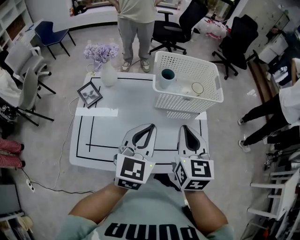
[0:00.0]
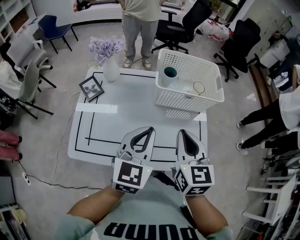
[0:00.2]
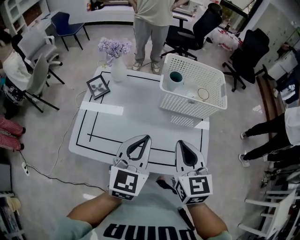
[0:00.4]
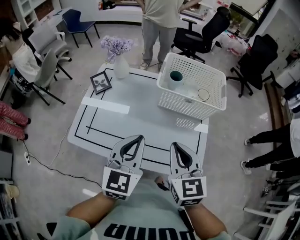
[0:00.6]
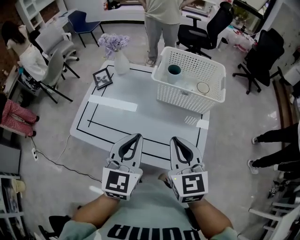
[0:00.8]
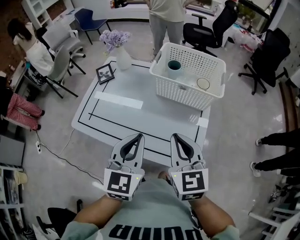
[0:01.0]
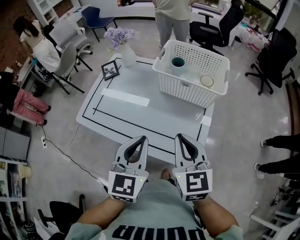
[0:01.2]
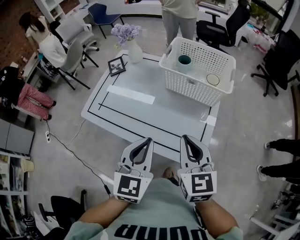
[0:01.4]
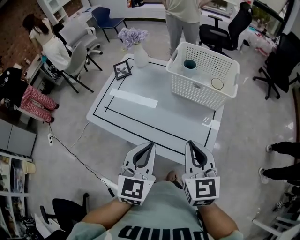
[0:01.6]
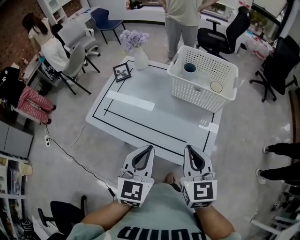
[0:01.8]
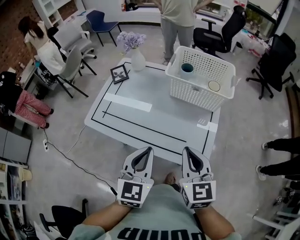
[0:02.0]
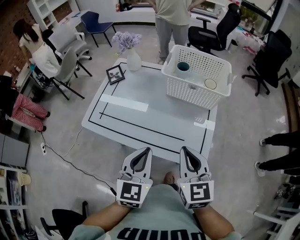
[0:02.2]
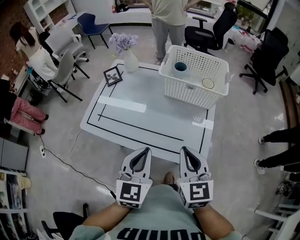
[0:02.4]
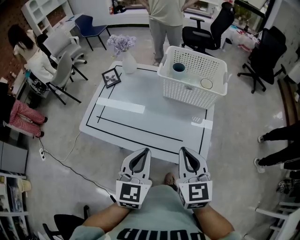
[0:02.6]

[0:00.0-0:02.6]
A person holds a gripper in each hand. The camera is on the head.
0:00.0 to 0:01.2: The right gripper ends up approximately 15 cm from where it was, and turns by roughly 30 degrees. The left gripper shifts by approximately 15 cm, and swivels about 30 degrees.
0:01.2 to 0:02.6: The left gripper ends up approximately 5 cm from where it was. The right gripper ends up roughly 5 cm from where it was.

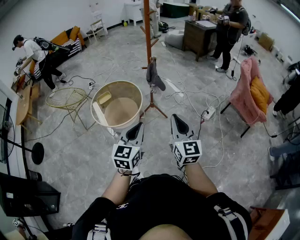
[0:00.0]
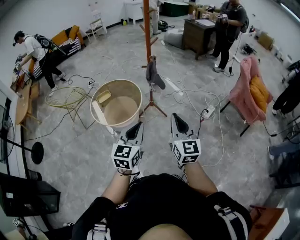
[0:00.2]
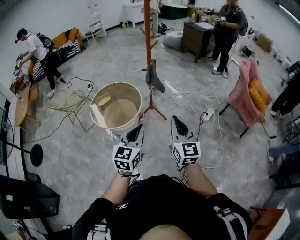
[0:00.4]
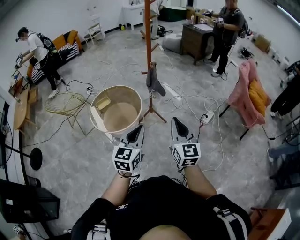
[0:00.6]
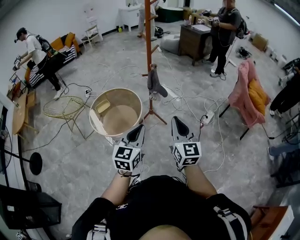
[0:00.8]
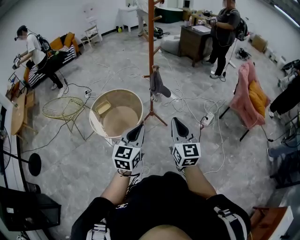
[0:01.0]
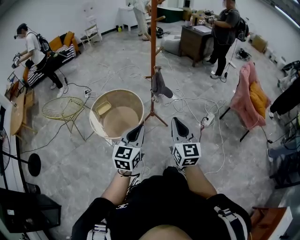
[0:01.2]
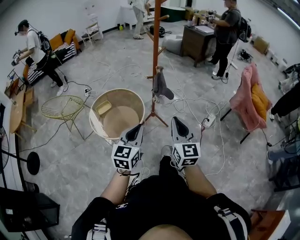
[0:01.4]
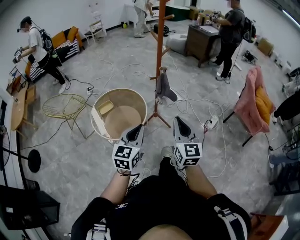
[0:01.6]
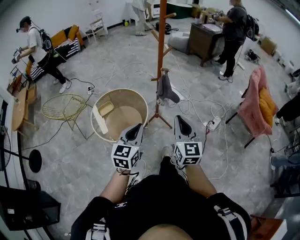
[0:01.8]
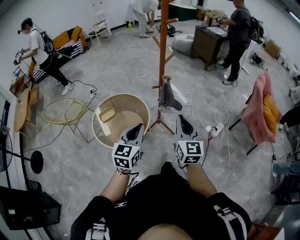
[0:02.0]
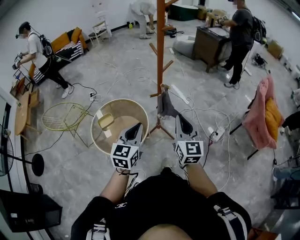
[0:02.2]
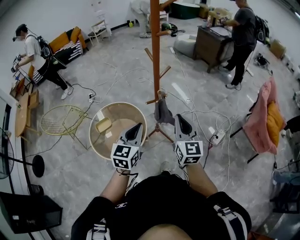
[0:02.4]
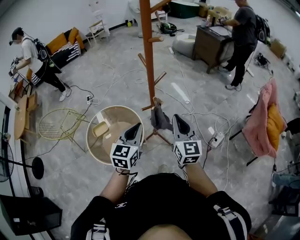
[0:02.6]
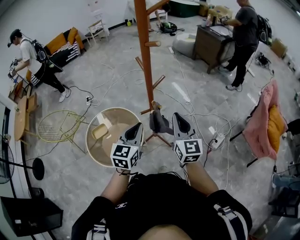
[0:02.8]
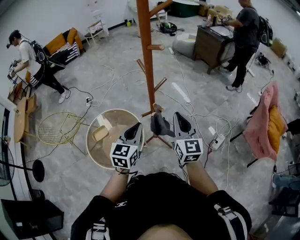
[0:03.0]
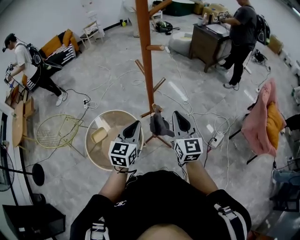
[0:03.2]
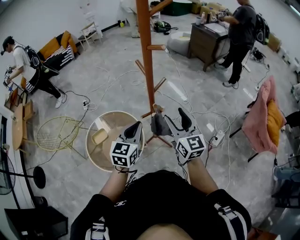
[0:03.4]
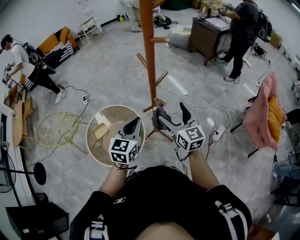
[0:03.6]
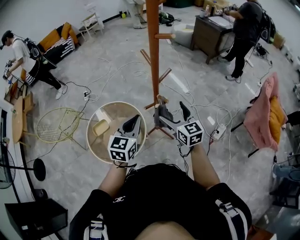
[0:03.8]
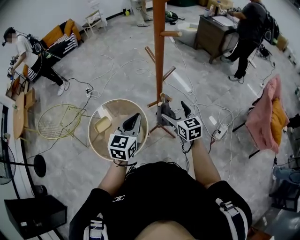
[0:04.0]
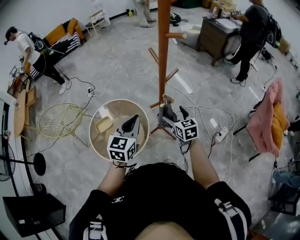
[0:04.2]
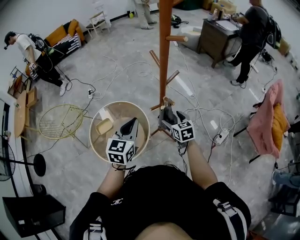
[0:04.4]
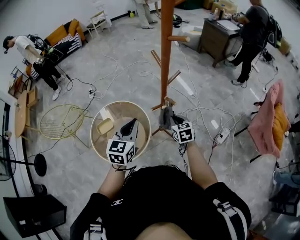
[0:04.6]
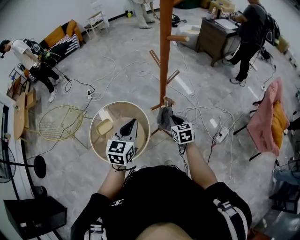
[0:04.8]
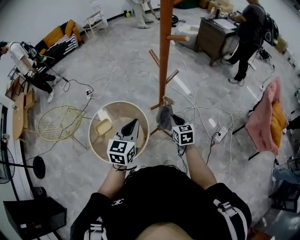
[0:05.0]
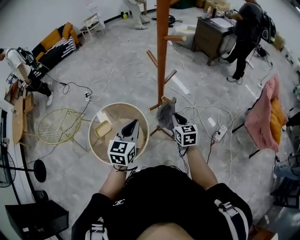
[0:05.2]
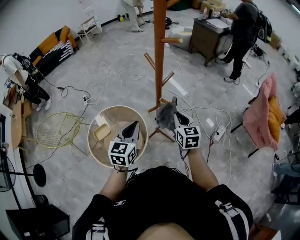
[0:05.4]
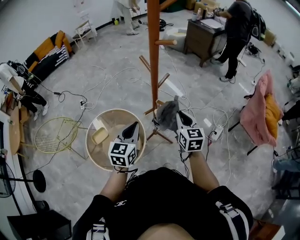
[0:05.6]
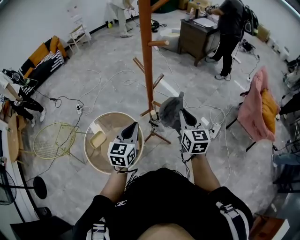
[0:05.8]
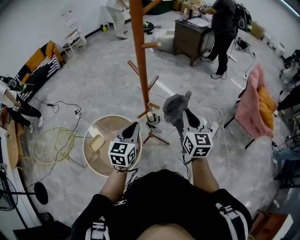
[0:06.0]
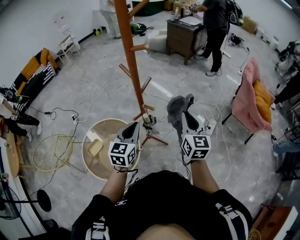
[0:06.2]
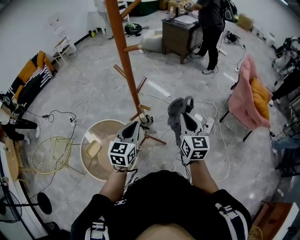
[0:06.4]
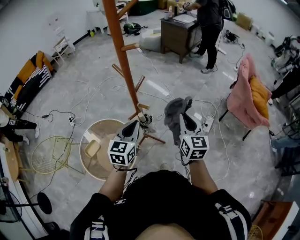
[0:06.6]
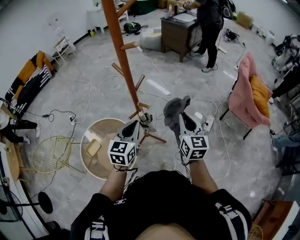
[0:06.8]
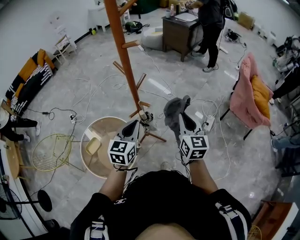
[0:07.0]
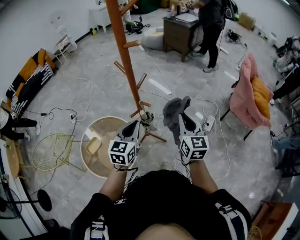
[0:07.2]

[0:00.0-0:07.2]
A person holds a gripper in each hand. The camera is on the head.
0:00.0 to 0:01.4: The right gripper heads to the left and forward, covering some 15 cm; the left gripper goes roughly 20 cm forward and to the left.
0:01.4 to 0:02.8: The pair of grippers is taken forward, approximately 50 cm.
0:02.8 to 0:04.4: The right gripper shifts some 25 cm downward, forward and to the left, angles its fingers downward, by about 30 degrees, and opens up, while the left gripper is displaced to the left and forward by approximately 10 cm.
0:04.4 to 0:05.8: The right gripper heads upward and to the right, covering about 20 cm, turns by about 30 degrees, and closes.
0:05.8 to 0:07.2: Both grippers move to the right, approximately 5 cm.

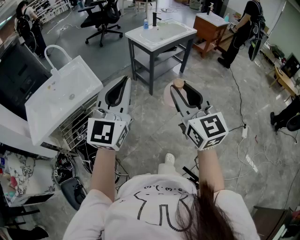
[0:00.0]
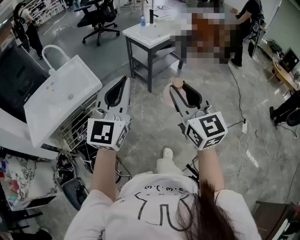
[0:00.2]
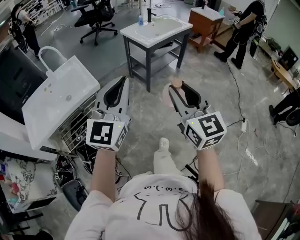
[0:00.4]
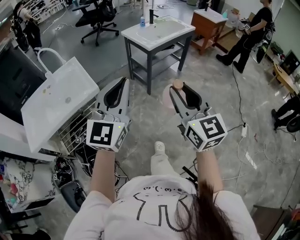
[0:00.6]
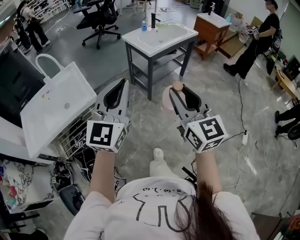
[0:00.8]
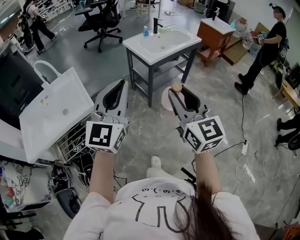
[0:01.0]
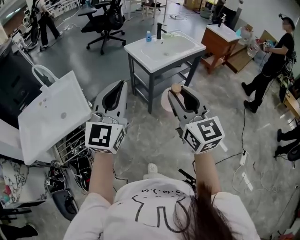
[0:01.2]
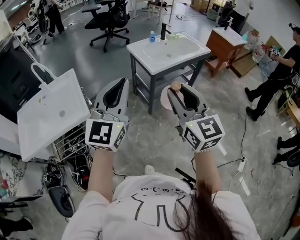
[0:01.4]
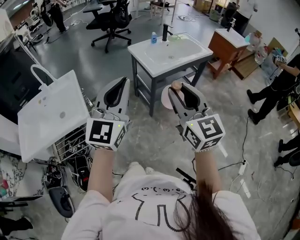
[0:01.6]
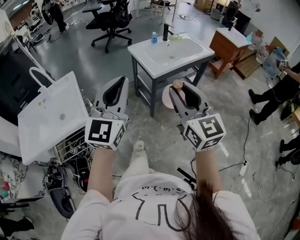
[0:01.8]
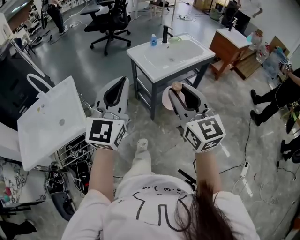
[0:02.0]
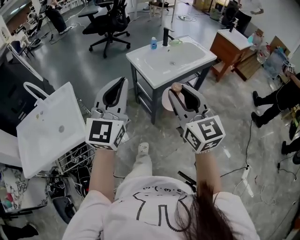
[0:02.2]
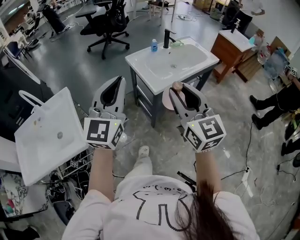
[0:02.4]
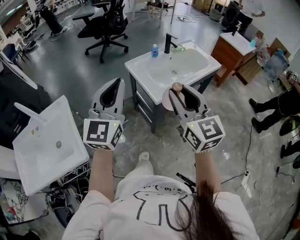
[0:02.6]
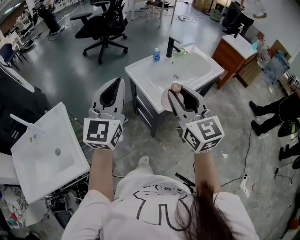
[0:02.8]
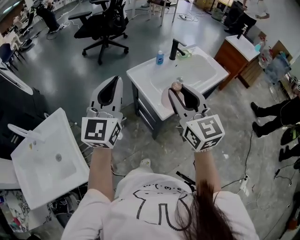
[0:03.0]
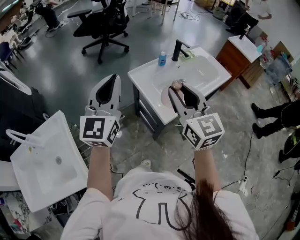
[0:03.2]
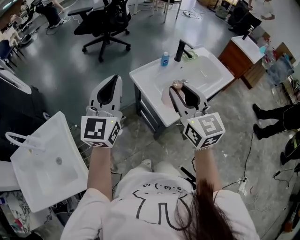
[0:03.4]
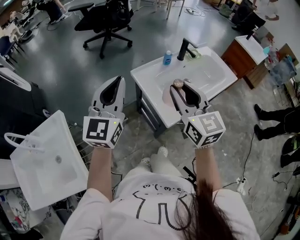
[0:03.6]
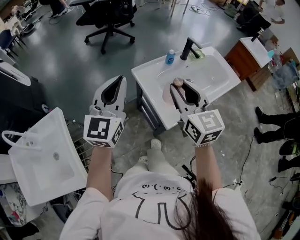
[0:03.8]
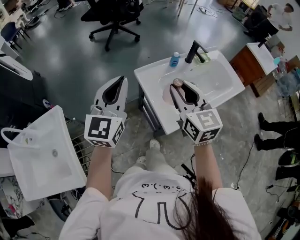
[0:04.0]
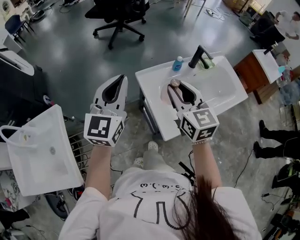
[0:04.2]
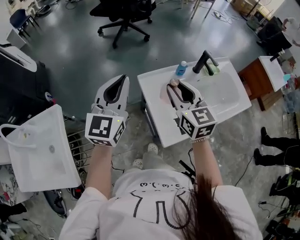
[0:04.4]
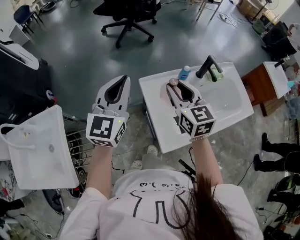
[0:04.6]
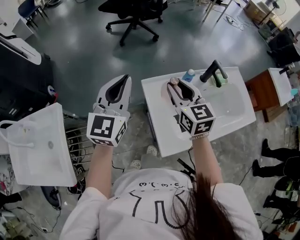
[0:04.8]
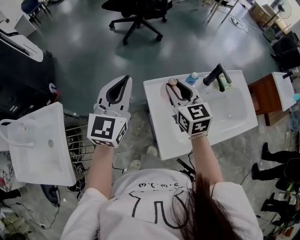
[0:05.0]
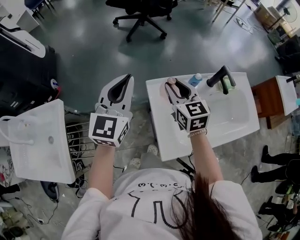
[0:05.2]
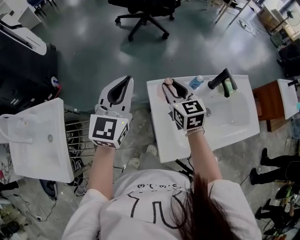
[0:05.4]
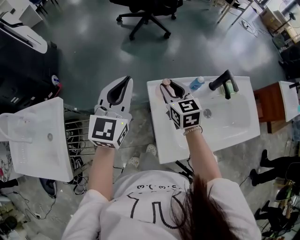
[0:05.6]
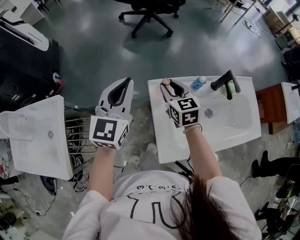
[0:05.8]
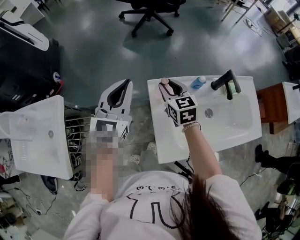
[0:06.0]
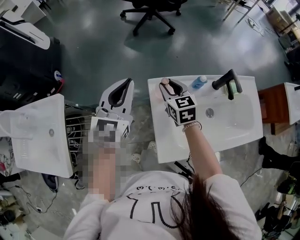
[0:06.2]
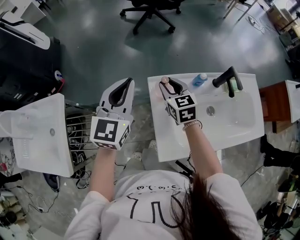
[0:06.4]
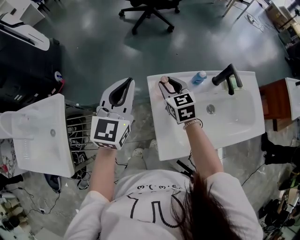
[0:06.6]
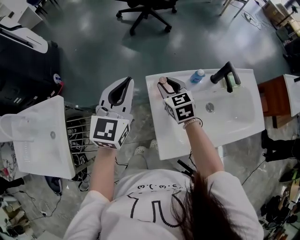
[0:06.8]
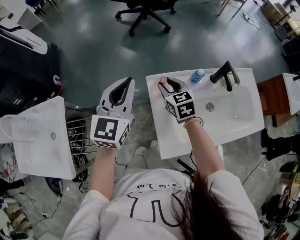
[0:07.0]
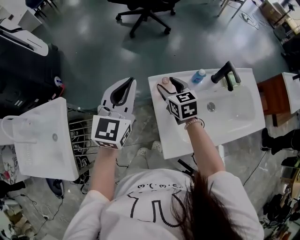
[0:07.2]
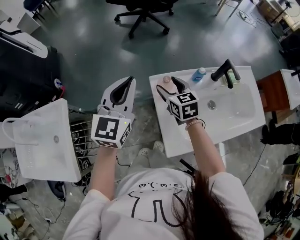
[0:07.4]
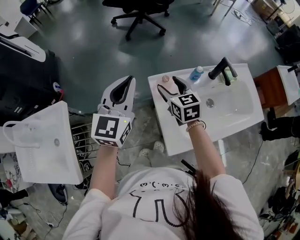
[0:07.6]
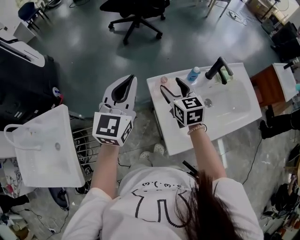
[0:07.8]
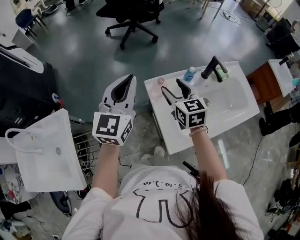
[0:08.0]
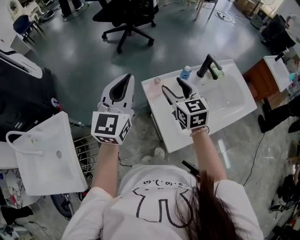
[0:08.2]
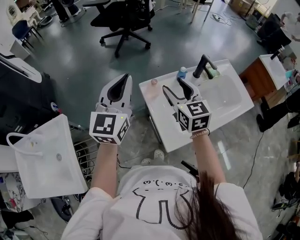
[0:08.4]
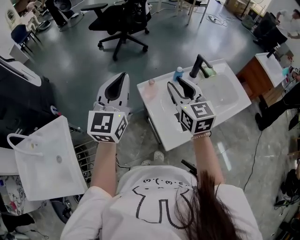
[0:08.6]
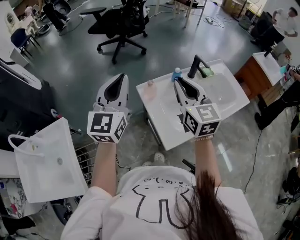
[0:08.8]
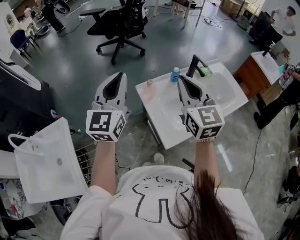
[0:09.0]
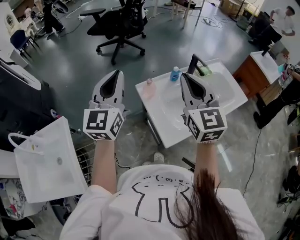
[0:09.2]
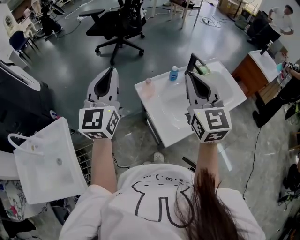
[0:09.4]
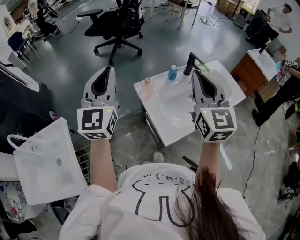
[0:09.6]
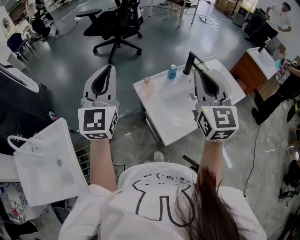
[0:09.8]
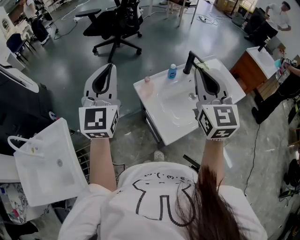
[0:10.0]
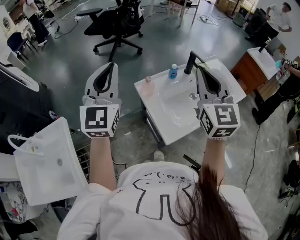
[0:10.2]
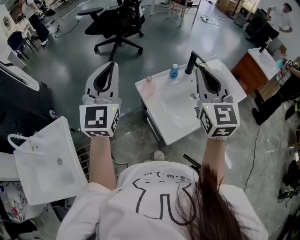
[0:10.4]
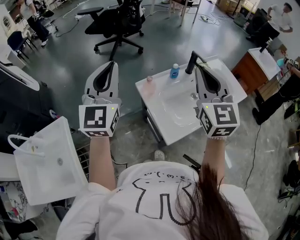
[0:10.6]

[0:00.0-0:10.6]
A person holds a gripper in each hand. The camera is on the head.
0:00.0 to 0:01.6: The two grippers go about 30 cm forward.
0:01.6 to 0:03.0: Both grippers move forward, approximately 40 cm.
0:03.0 to 0:04.6: The right gripper is displaced forward and downward by approximately 30 cm, and rotates some 20 degrees; the left gripper shifts approximately 20 cm forward.
0:04.6 to 0:06.0: The right gripper heads downward and forward, covering some 15 cm; the left gripper heads downward and forward, covering some 5 cm.
0:06.0 to 0:07.6: The right gripper opens up.
0:07.6 to 0:09.0: The left gripper travels upward and backward by roughly 10 cm. The right gripper goes about 25 cm upward and backward, turns by roughly 30 degrees, and closes its fingers.
0:09.0 to 0:10.6: The right gripper shifts roughly 5 cm upward.

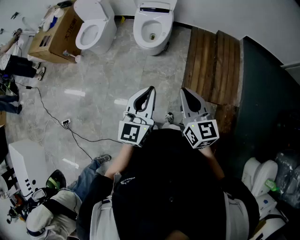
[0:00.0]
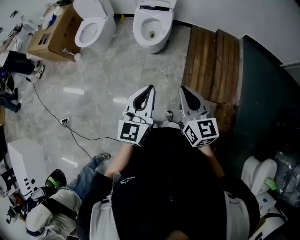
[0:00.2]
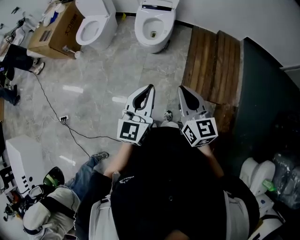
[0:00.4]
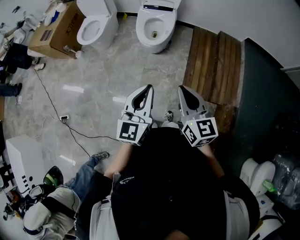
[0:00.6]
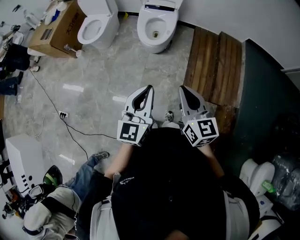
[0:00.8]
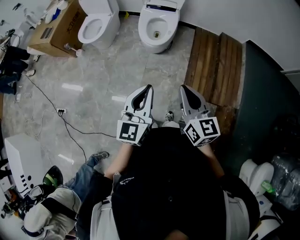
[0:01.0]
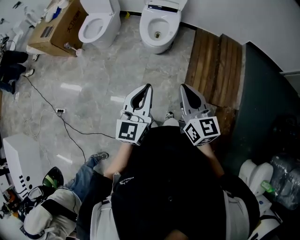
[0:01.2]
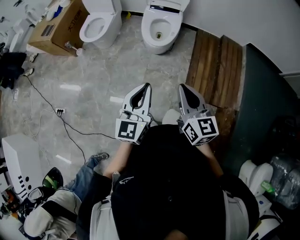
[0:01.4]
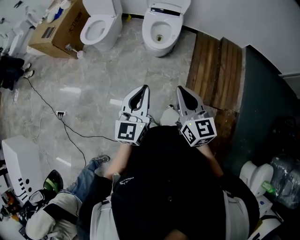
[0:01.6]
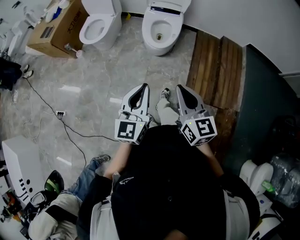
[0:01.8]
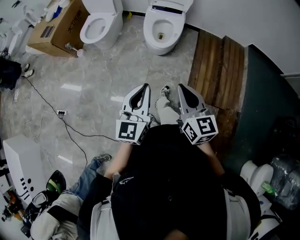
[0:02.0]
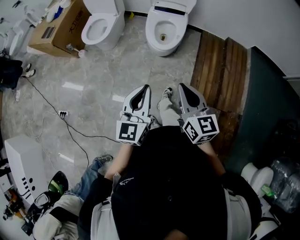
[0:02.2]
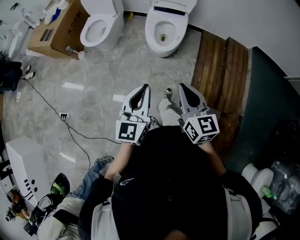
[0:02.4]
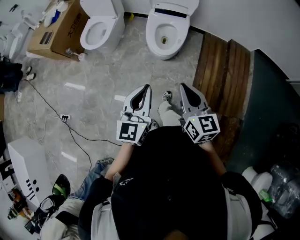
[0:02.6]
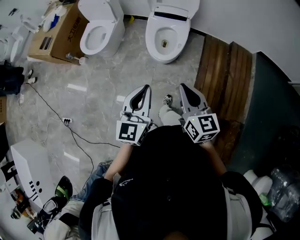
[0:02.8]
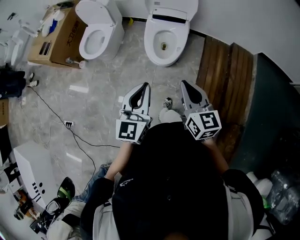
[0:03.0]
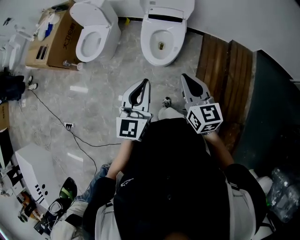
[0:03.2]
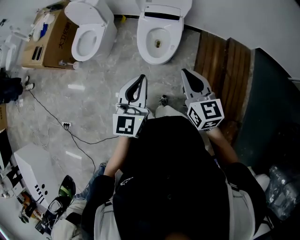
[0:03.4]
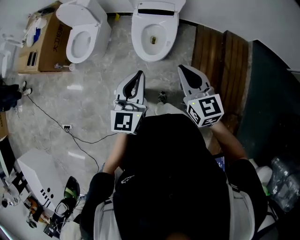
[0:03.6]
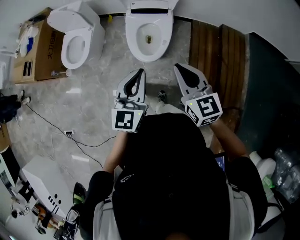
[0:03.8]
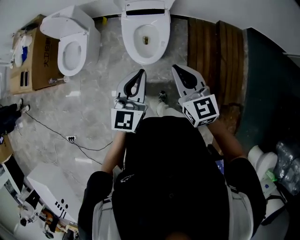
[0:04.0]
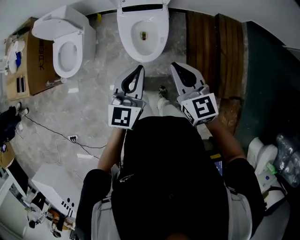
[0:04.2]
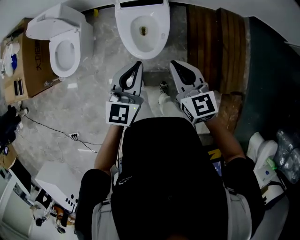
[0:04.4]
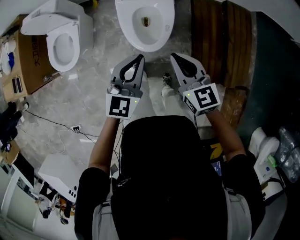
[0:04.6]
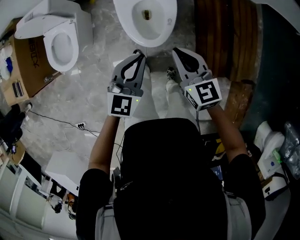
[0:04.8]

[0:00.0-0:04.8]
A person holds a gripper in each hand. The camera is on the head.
0:00.0 to 0:01.6: The grippers both shift to the left by roughly 10 cm.
0:01.6 to 0:03.2: Both grippers move forward, about 30 cm.
0:03.2 to 0:04.8: Both grippers travel together forward and downward, about 30 cm. The left gripper turns by approximately 30 degrees.
